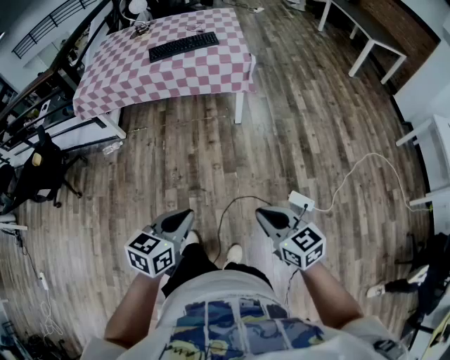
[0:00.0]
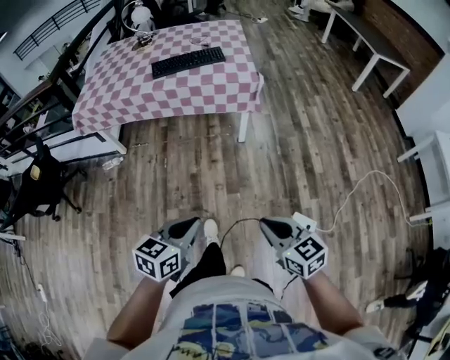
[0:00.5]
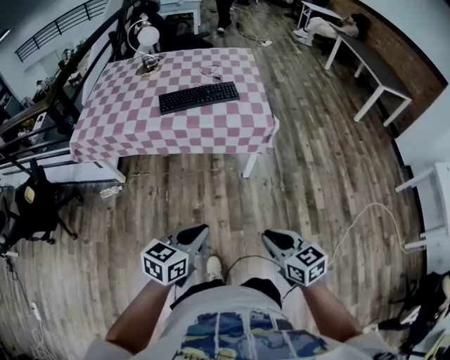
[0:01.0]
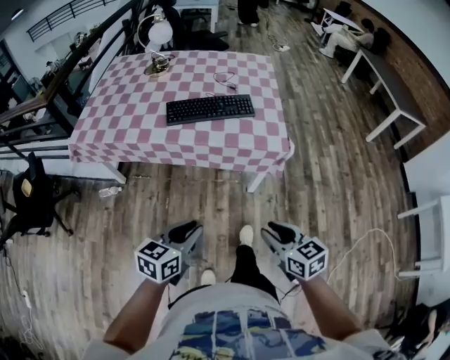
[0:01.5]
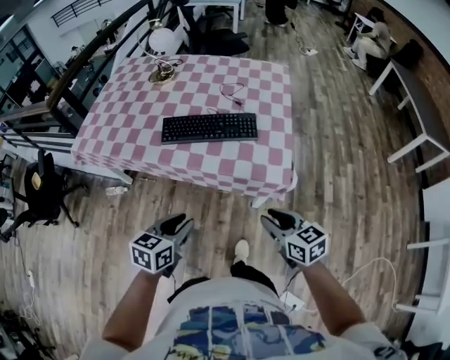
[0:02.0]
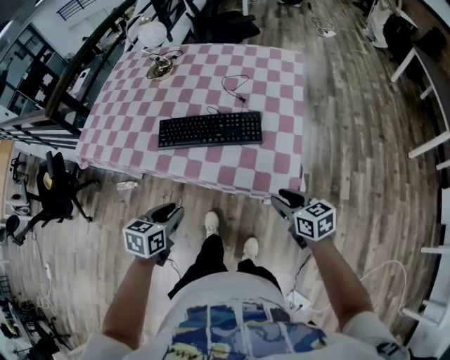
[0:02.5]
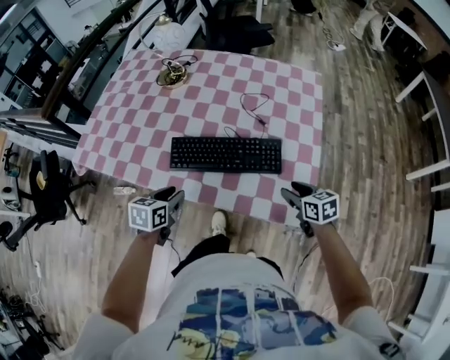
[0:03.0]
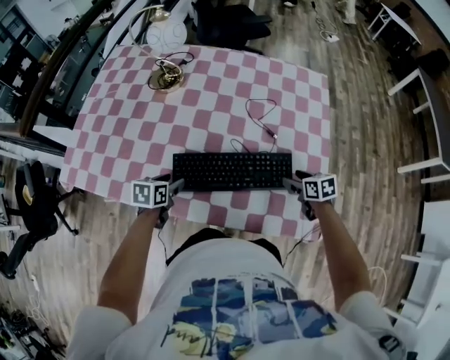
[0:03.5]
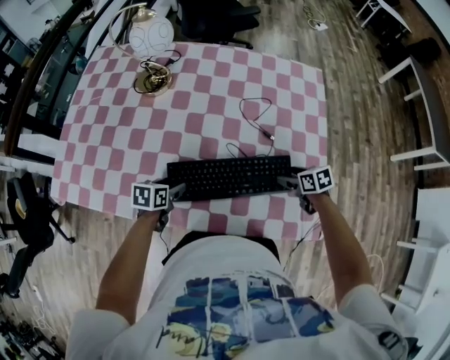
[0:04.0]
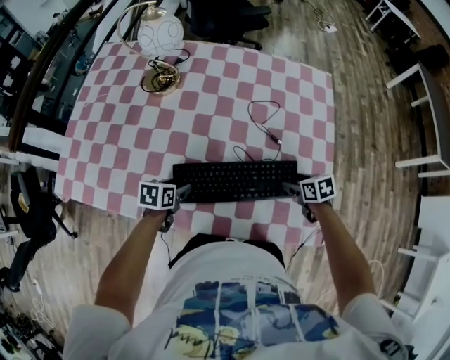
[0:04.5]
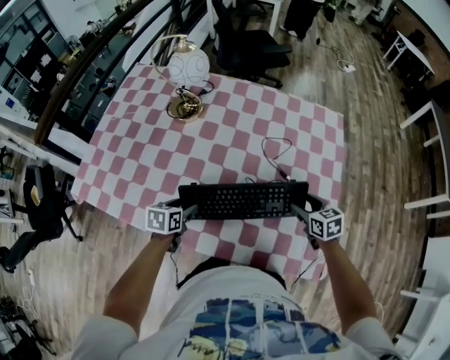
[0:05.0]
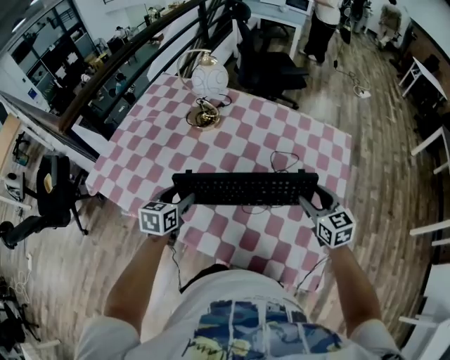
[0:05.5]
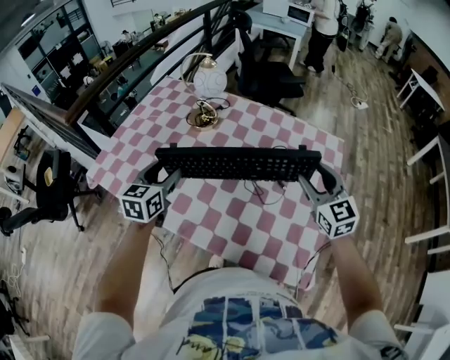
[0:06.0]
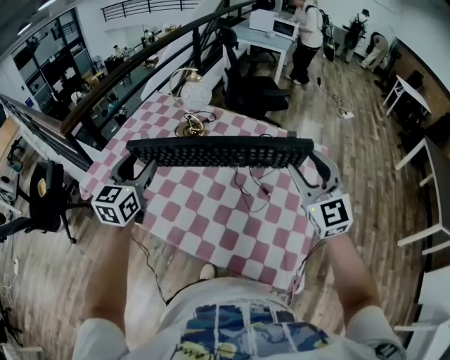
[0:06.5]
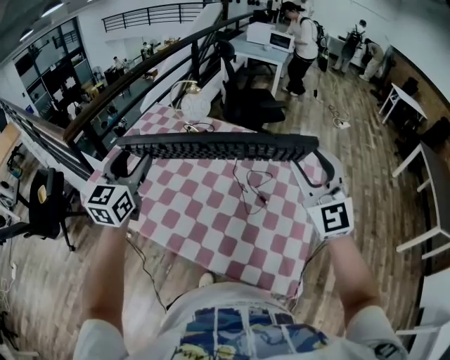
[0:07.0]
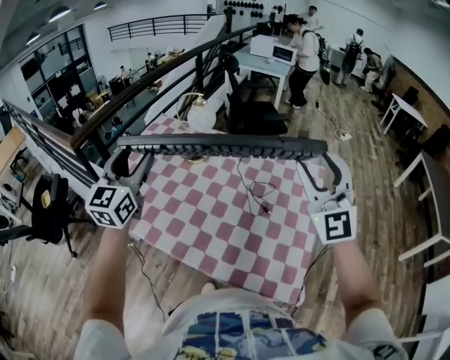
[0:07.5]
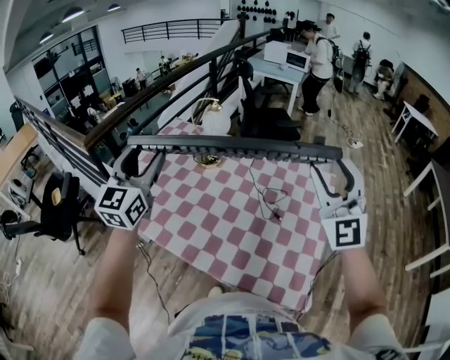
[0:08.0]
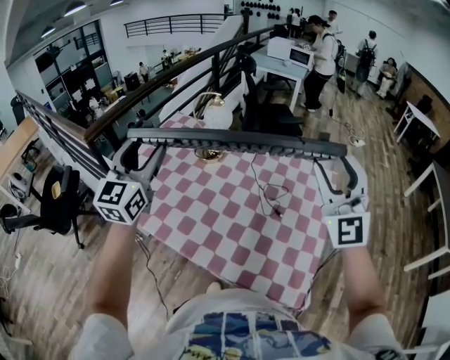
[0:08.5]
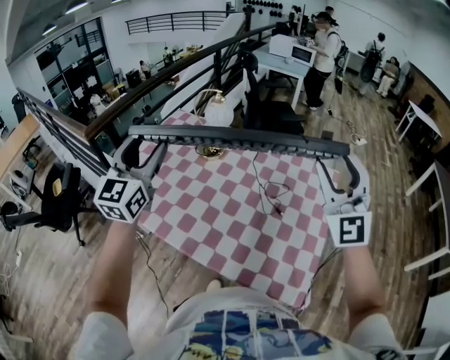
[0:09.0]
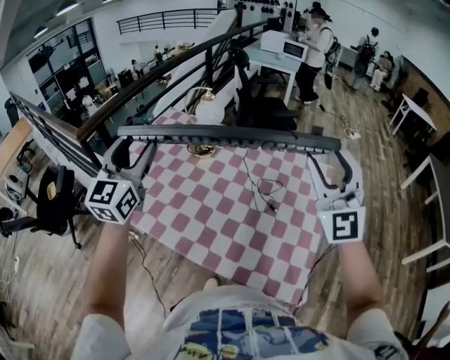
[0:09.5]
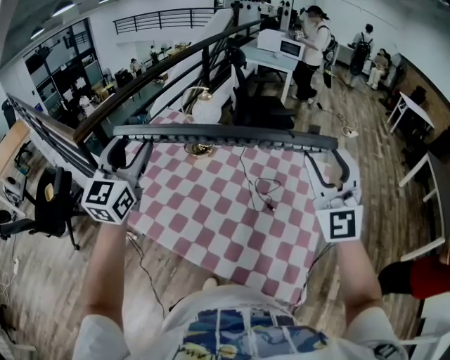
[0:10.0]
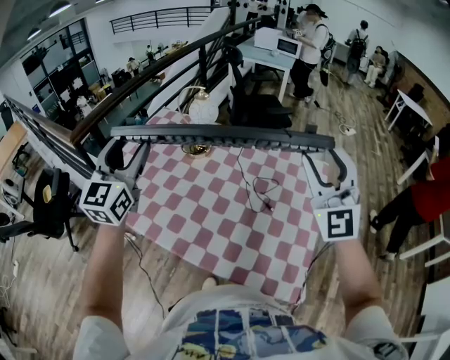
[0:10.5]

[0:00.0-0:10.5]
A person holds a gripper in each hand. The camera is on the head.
0:00.0 to 0:02.0: The two grippers travel together, forward, approximately 70 cm. The left gripper opens its fingers.
0:02.0 to 0:04.0: The two grippers travel together, forward, approximately 50 cm. Both grippers travel together downward, roughly 20 cm. The right gripper turns by roughly 30 degrees, and opens its fingers. Meanwhile the left gripper swivels some 30 degrees, and opens.
0:04.0 to 0:06.5: Both grippers travel together upward, roughly 40 cm. The right gripper tilts its fingers about 50 degrees upward, and closes its fingers; the left gripper tilts its fingers about 40 degrees upward.
0:06.5 to 0:08.5: The grippers both shift upward by approximately 15 cm. The right gripper swivels about 20 degrees.
0:08.5 to 0:10.5: The grippers make only small movements.

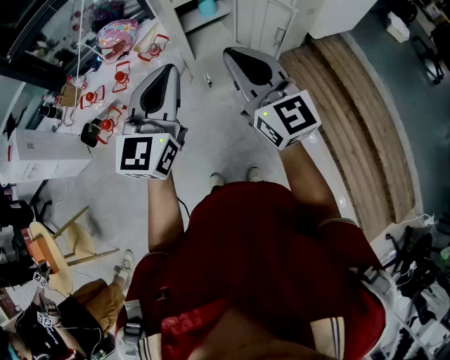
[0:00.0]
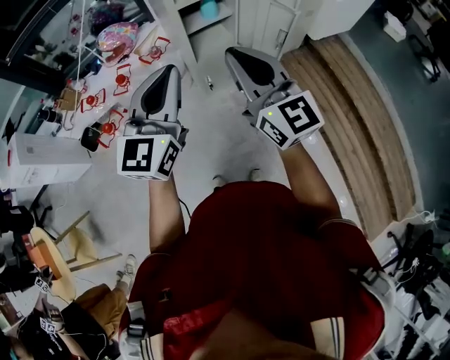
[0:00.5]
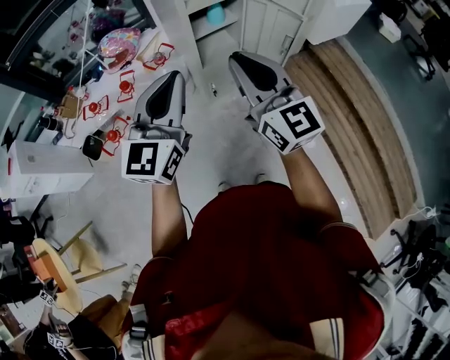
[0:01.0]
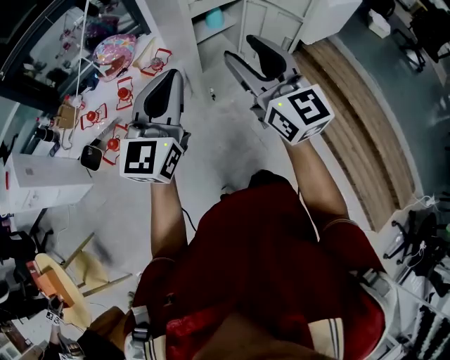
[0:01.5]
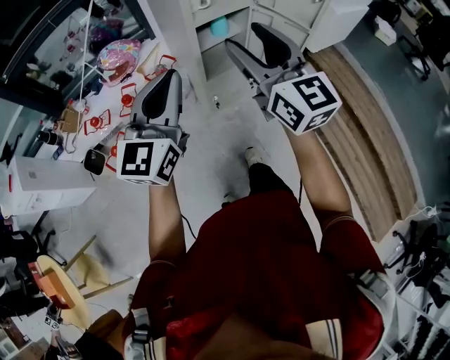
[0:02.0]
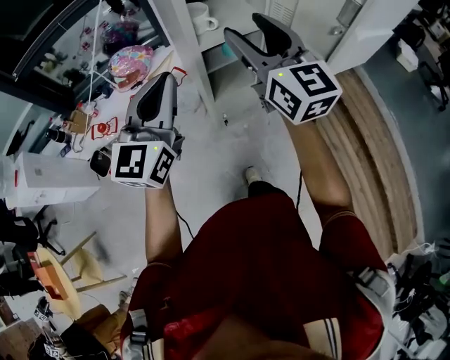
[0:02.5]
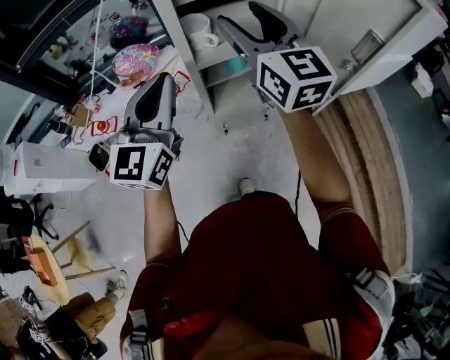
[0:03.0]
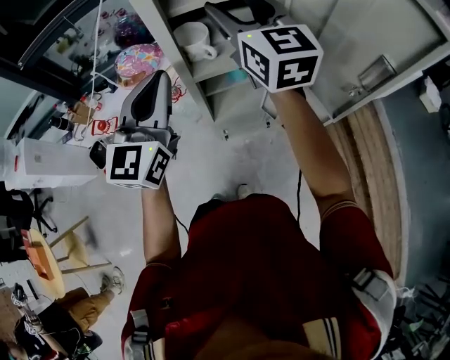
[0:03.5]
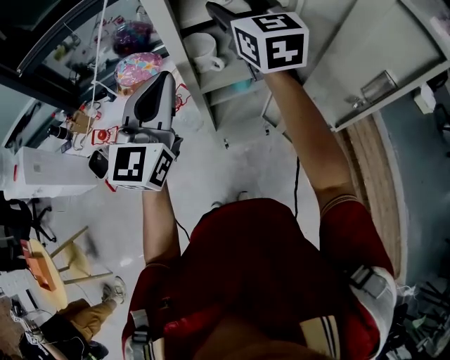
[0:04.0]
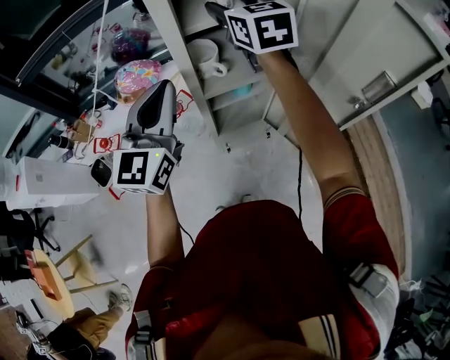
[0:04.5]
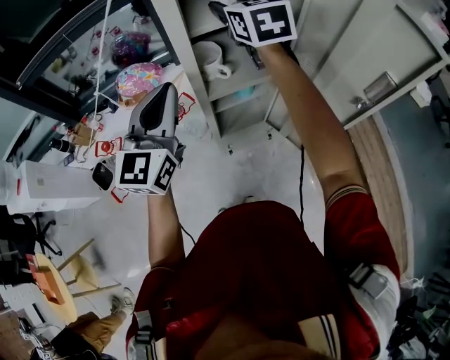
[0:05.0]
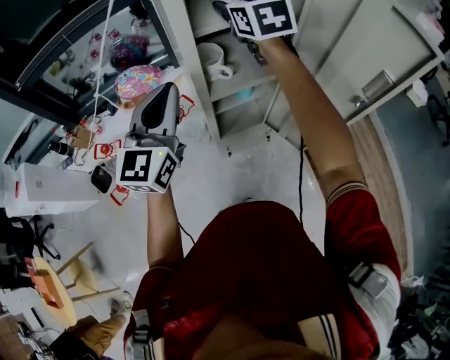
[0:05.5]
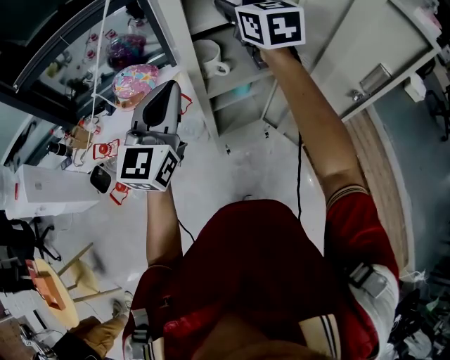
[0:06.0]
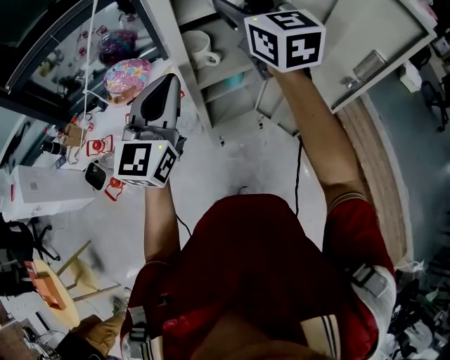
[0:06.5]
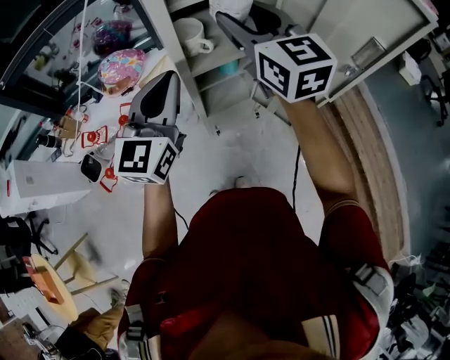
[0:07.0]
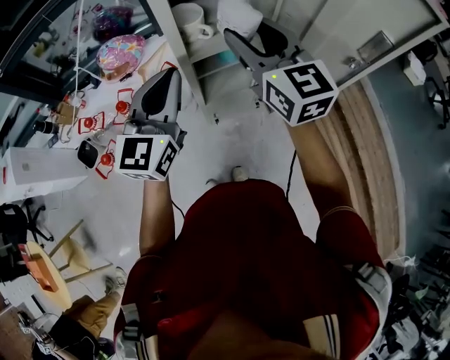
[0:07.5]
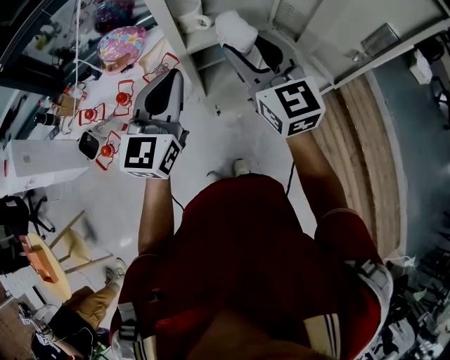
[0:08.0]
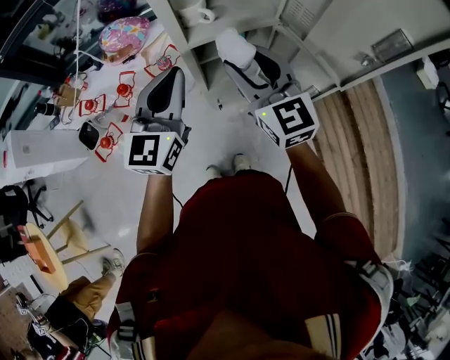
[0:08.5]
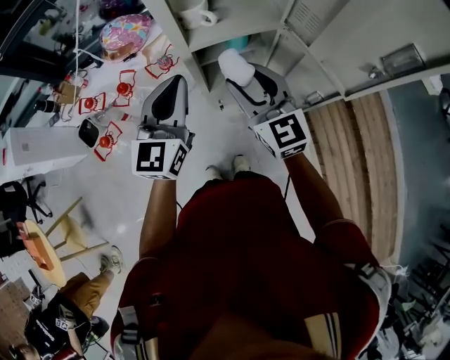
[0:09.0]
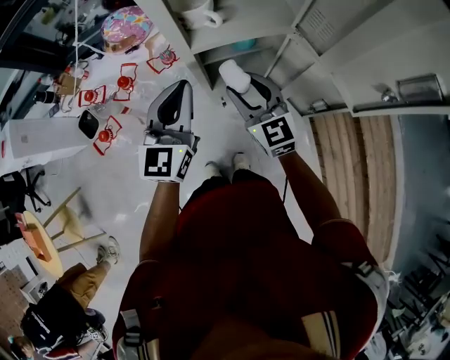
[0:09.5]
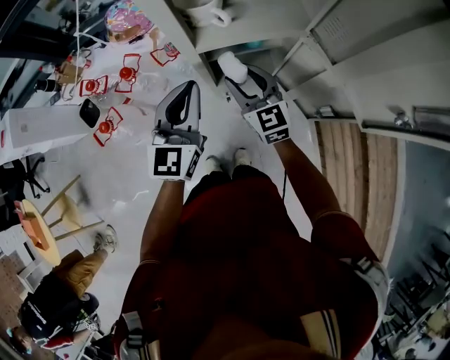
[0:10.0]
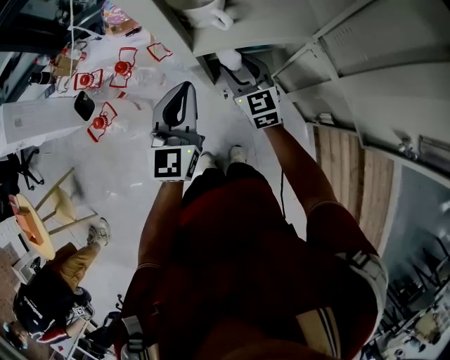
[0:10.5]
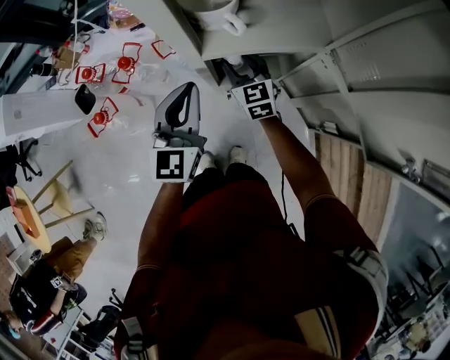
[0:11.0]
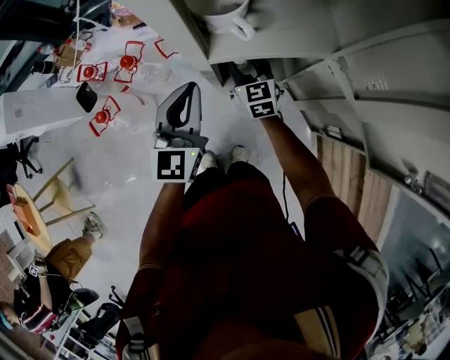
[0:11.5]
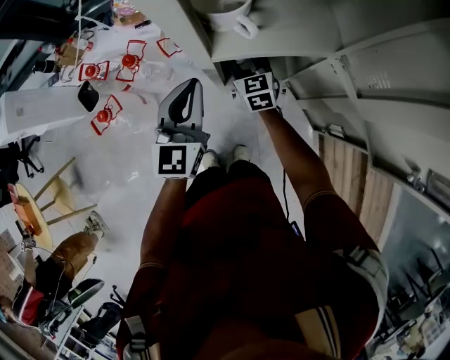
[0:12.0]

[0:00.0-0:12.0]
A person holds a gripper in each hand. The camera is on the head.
0:00.0 to 0:02.0: The right gripper shifts some 15 cm forward, to the left and upward, and opens up. Meanwhile the left gripper travels to the left and forward by roughly 15 cm.
0:02.0 to 0:04.0: The left gripper is displaced forward by about 25 cm. The right gripper travels forward by roughly 40 cm.
0:04.0 to 0:06.0: The grippers make only small movements.
0:06.0 to 0:08.0: The left gripper moves downward, about 10 cm; the right gripper travels backward and downward by roughly 20 cm.
0:08.0 to 0:10.0: The left gripper heads downward and forward, covering about 15 cm; the right gripper heads downward, covering about 25 cm.
0:10.0 to 0:12.0: The left gripper moves about 5 cm. Meanwhile the right gripper shifts some 15 cm forward and downward.

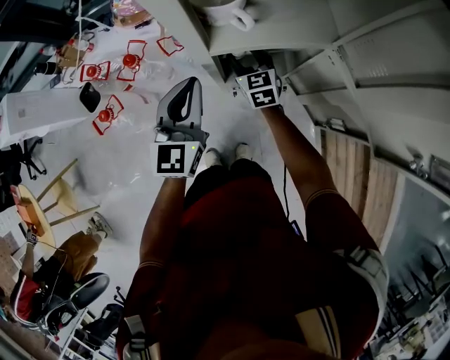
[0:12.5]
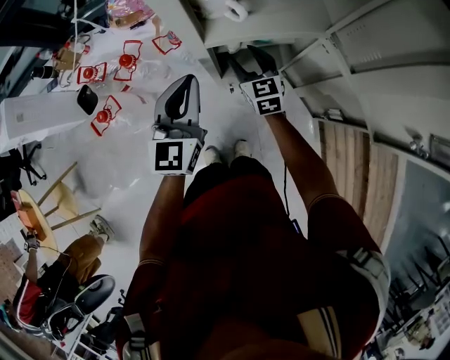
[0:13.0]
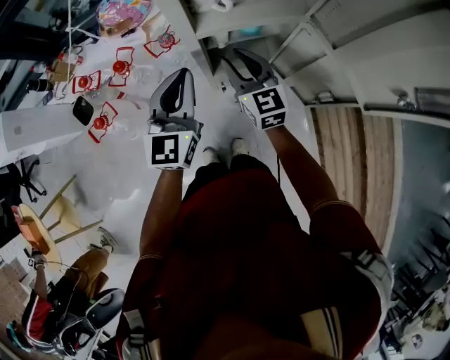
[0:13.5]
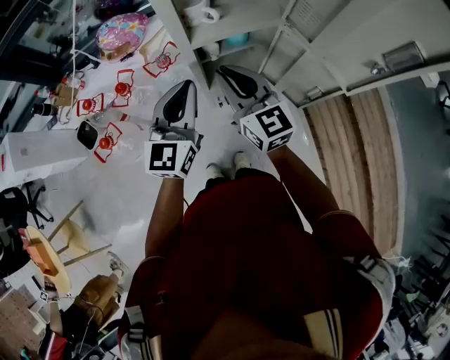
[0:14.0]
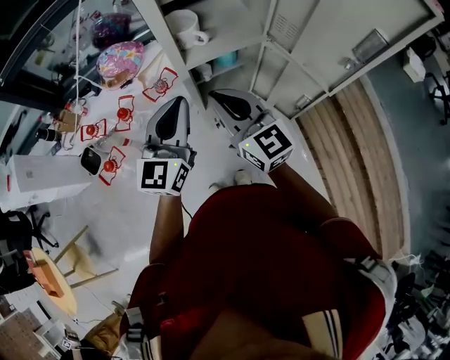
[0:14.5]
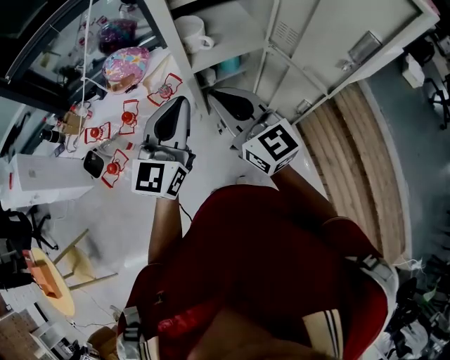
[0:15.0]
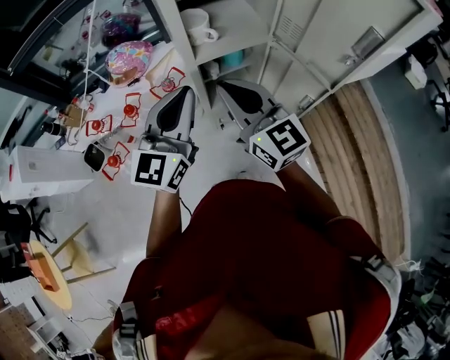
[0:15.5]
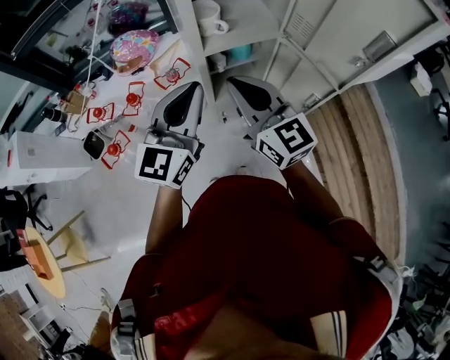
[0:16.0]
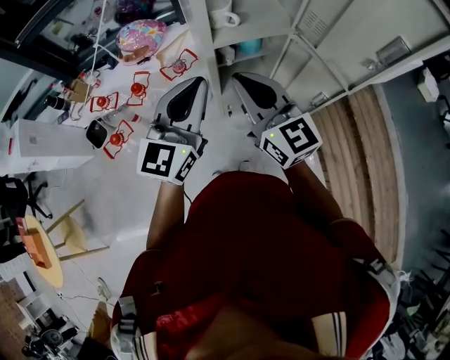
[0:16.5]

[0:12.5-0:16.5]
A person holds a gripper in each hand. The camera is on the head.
0:12.5 to 0:14.5: The left gripper goes roughly 15 cm upward and backward, and changes its angle by roughly 20 degrees; the right gripper shifts about 35 cm upward and backward, rotates some 30 degrees, and closes its fingers.
0:14.5 to 0:16.5: The left gripper moves roughly 5 cm.
